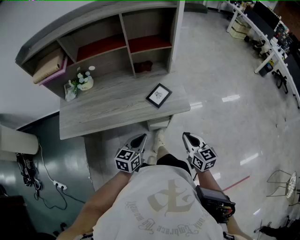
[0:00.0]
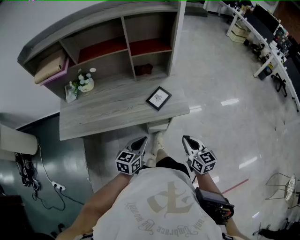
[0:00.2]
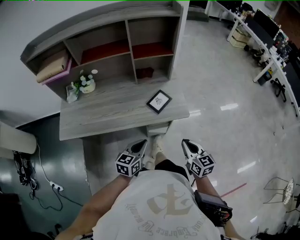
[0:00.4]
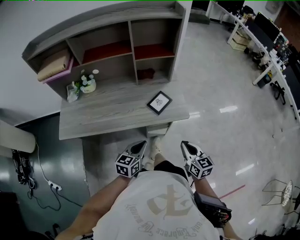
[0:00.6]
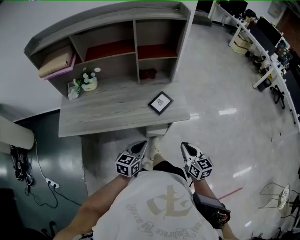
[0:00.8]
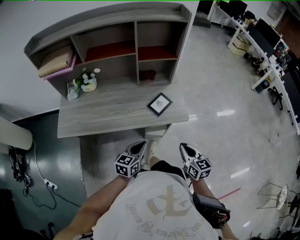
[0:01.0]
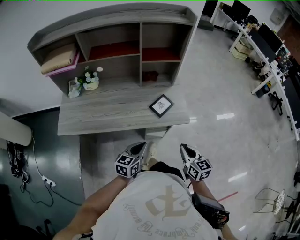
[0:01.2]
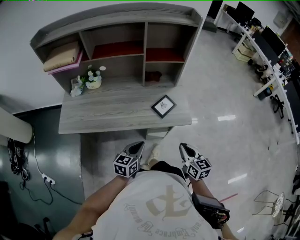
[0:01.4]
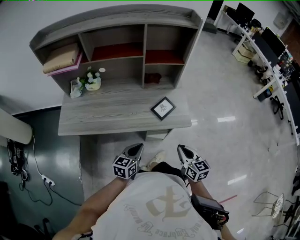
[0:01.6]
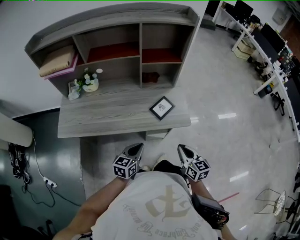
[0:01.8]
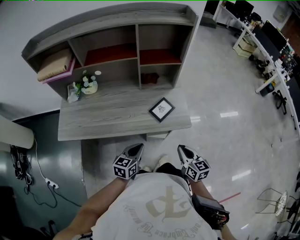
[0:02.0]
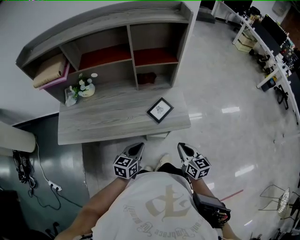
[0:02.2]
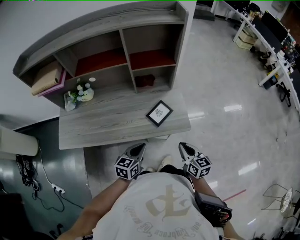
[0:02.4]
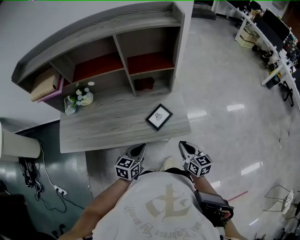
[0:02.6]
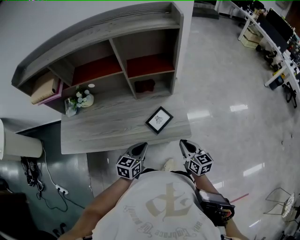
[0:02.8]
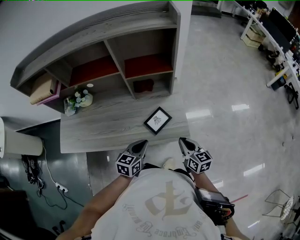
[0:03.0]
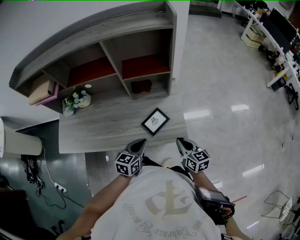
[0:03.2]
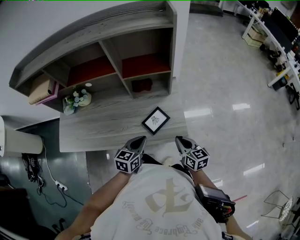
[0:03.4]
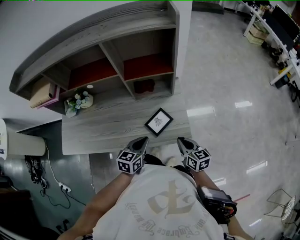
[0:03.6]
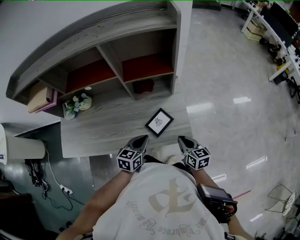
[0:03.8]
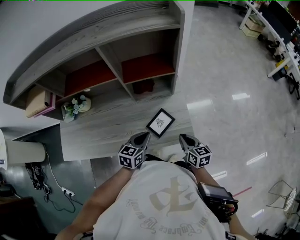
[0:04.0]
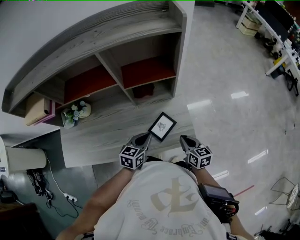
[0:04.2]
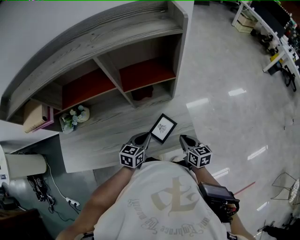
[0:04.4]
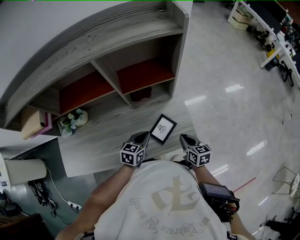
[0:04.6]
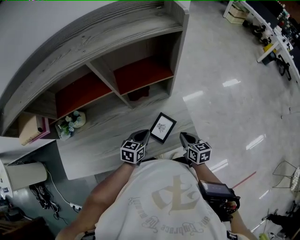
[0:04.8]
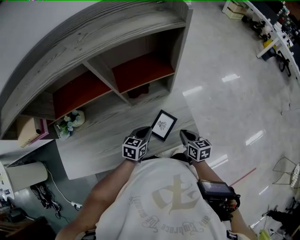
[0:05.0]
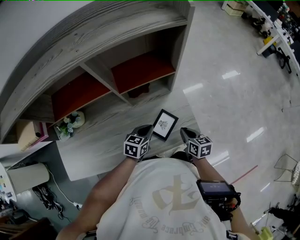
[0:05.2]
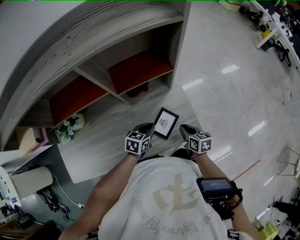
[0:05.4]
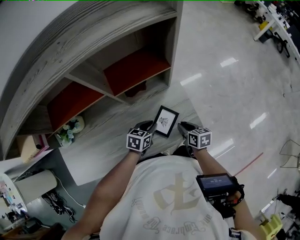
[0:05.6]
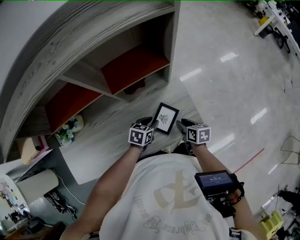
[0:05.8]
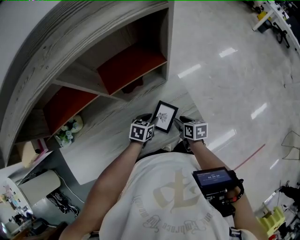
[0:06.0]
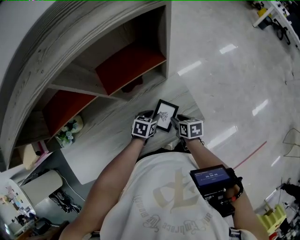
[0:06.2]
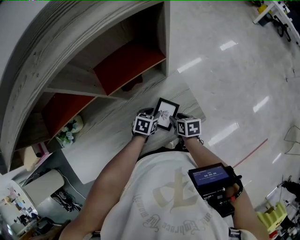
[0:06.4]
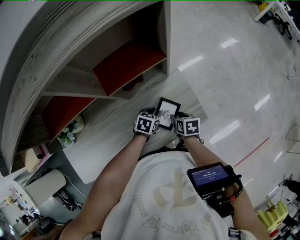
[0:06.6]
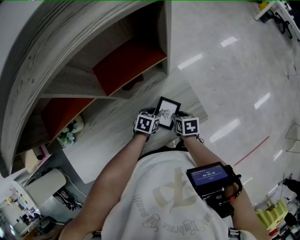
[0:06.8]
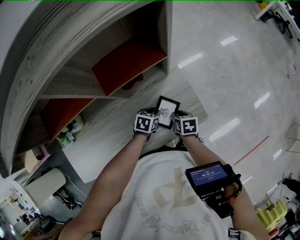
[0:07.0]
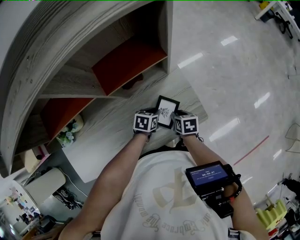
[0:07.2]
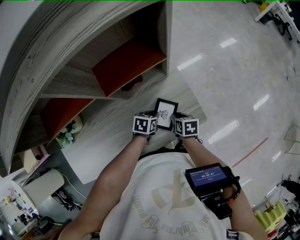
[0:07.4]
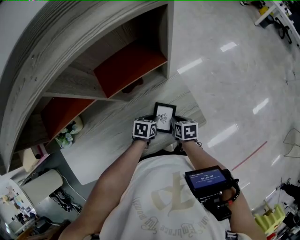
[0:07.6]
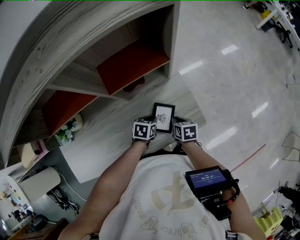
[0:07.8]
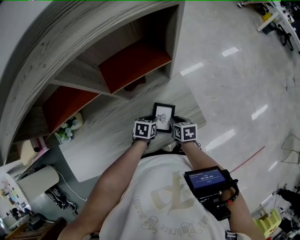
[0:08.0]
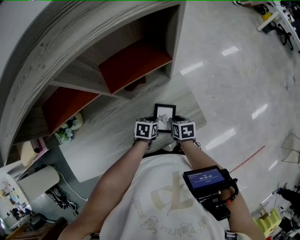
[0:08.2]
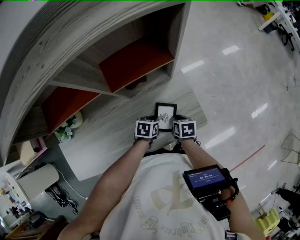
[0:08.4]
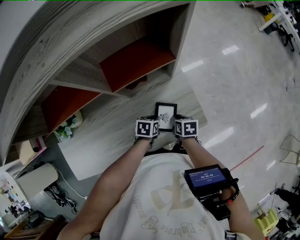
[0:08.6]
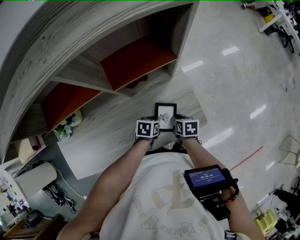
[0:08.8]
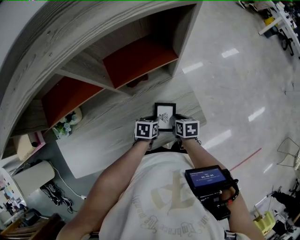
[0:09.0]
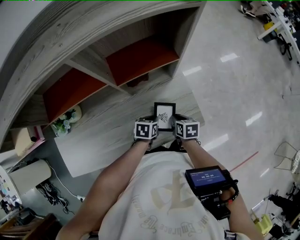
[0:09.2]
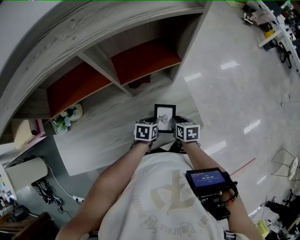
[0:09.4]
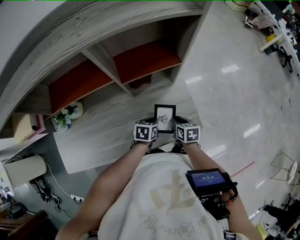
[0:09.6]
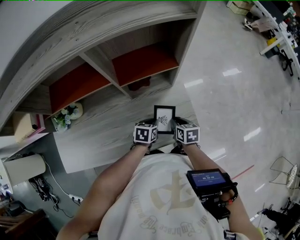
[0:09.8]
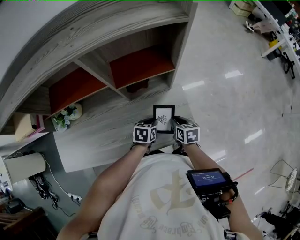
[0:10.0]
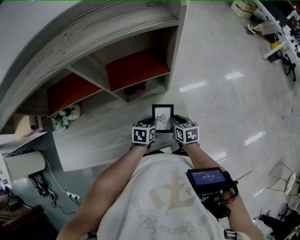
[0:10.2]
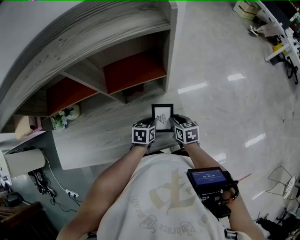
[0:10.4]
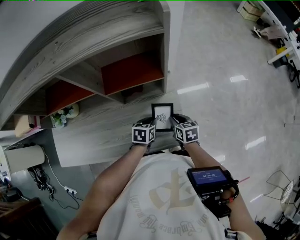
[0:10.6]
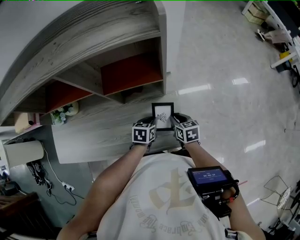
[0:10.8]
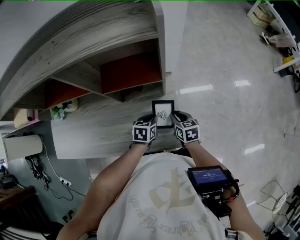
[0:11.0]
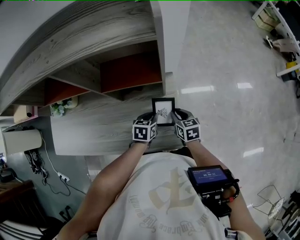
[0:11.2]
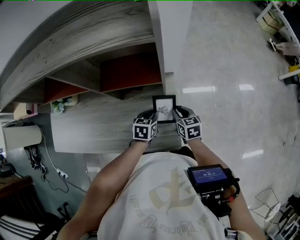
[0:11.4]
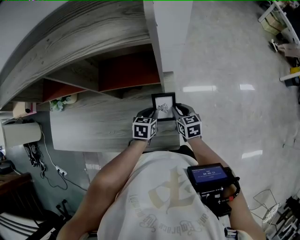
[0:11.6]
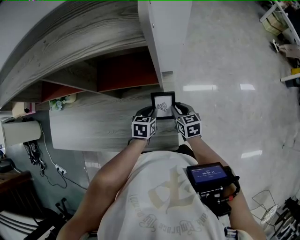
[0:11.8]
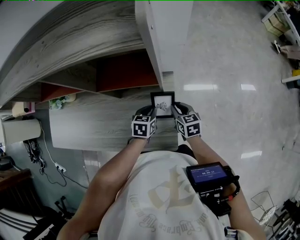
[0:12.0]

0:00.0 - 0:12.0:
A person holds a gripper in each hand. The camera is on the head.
0:00.0 - 0:01.6: The grippers make only small movements.
0:01.6 - 0:03.0: Both grippers travel together forward and to the right, approximately 20 cm.
0:03.0 - 0:04.4: The right gripper goes some 10 cm forward. The left gripper is displaced forward by roughly 10 cm.
0:04.4 - 0:06.0: The right gripper travels downward by roughly 10 cm, turns by about 30 degrees, and opens its fingers. Meanwhile the left gripper moves downward and forward, roughly 15 cm, turns by approximately 30 degrees, and opens up.
0:06.0 - 0:07.6: The right gripper closes up.
0:07.6 - 0:09.0: The grippers stay close to where they were, moving slightly.
0:09.0 - 0:10.4: The right gripper moves upward, forward and to the right, approximately 10 cm, and swivels some 20 degrees. The left gripper is displaced upward and to the right by roughly 10 cm.
0:10.4 - 0:12.0: Both grippers move forward and to the right, about 10 cm.

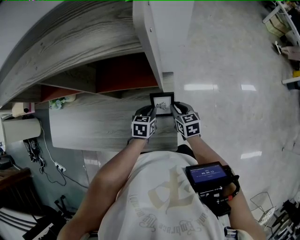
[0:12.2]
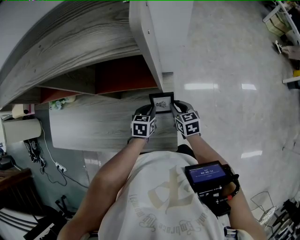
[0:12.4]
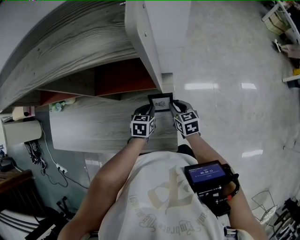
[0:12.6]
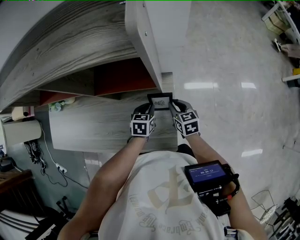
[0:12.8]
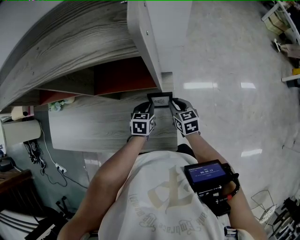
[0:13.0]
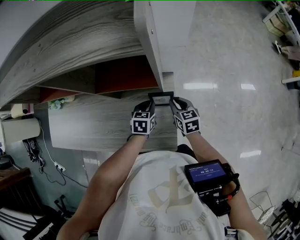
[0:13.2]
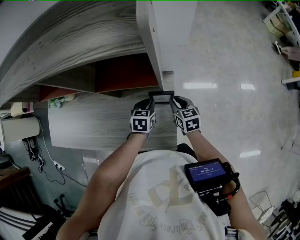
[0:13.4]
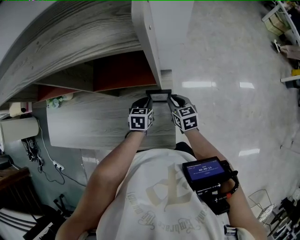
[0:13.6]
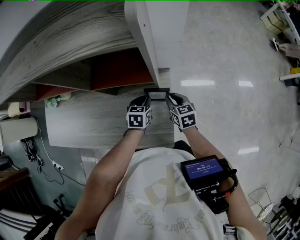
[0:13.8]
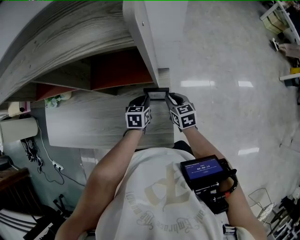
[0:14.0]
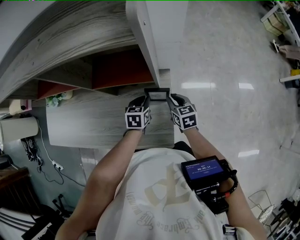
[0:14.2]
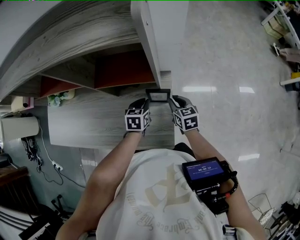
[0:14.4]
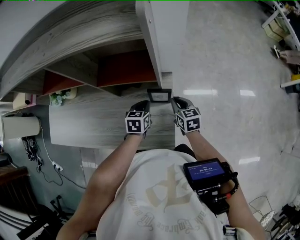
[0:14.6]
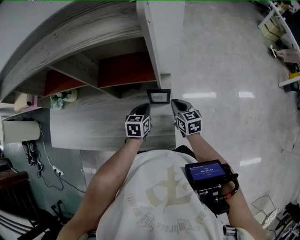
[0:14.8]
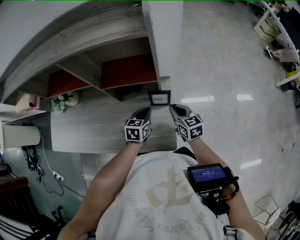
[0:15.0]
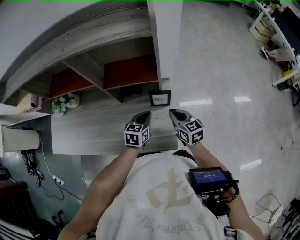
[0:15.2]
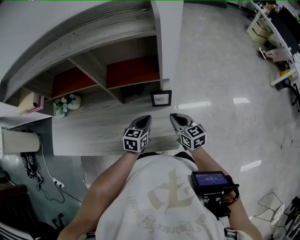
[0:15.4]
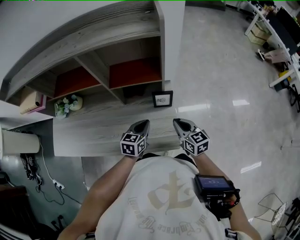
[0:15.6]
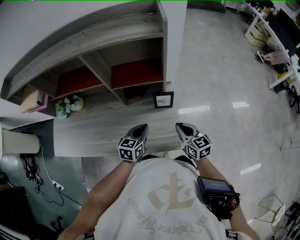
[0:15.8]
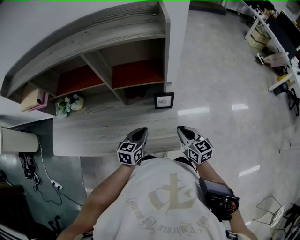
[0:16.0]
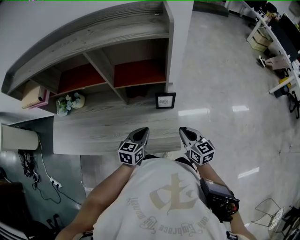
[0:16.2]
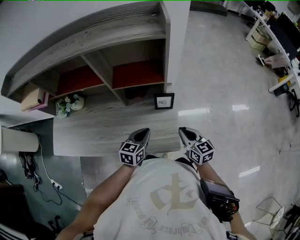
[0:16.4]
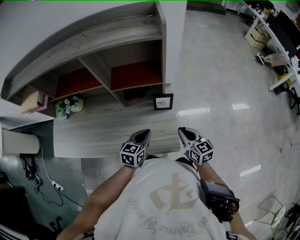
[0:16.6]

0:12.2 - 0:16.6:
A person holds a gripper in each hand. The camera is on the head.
0:12.2 - 0:13.6: The grippers make only small movements.
0:13.6 - 0:15.2: The right gripper travels backward and upward by some 10 cm, while the left gripper shifts about 10 cm upward and backward.
0:15.2 - 0:16.6: Both grippers travel together backward, approximately 10 cm.

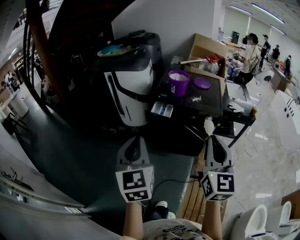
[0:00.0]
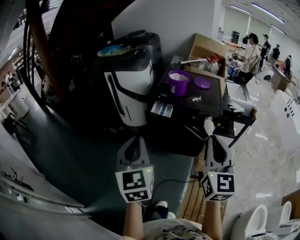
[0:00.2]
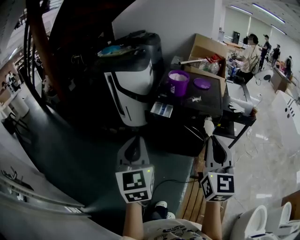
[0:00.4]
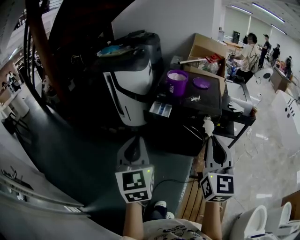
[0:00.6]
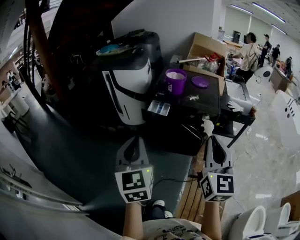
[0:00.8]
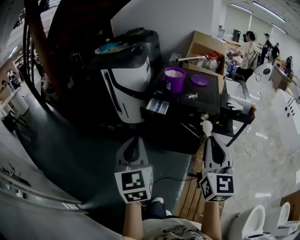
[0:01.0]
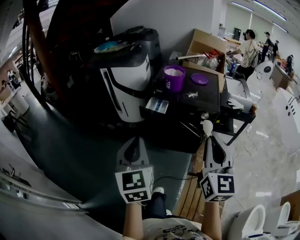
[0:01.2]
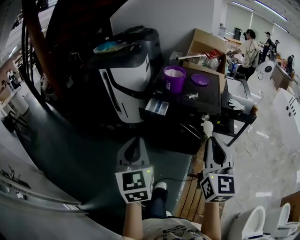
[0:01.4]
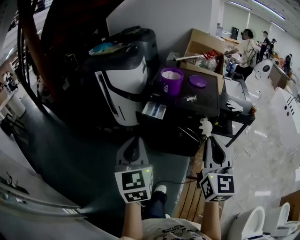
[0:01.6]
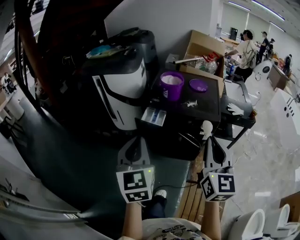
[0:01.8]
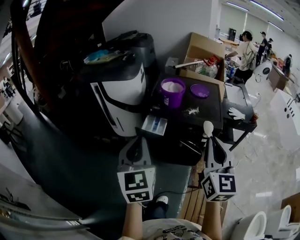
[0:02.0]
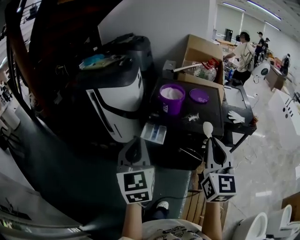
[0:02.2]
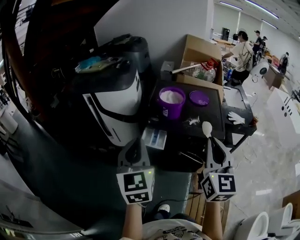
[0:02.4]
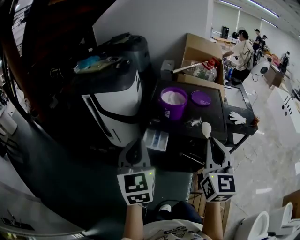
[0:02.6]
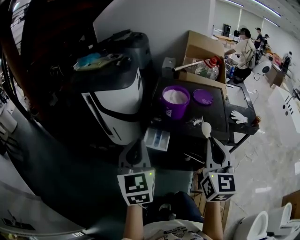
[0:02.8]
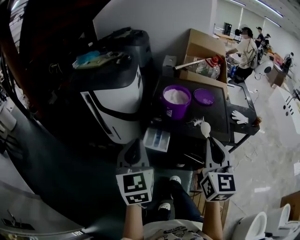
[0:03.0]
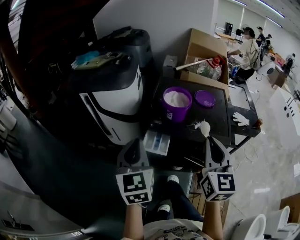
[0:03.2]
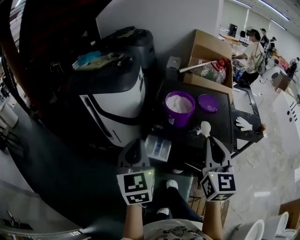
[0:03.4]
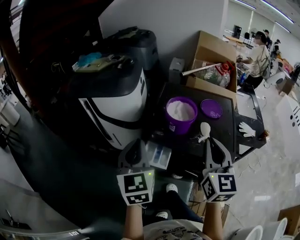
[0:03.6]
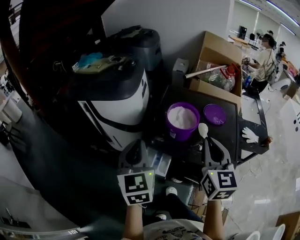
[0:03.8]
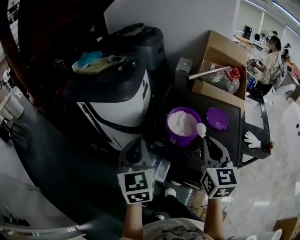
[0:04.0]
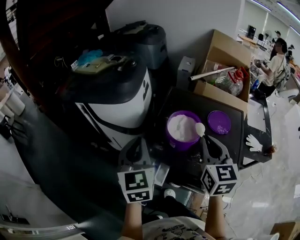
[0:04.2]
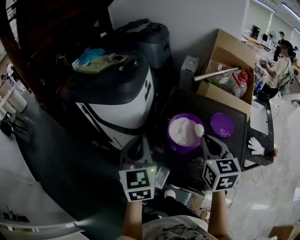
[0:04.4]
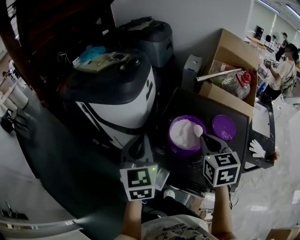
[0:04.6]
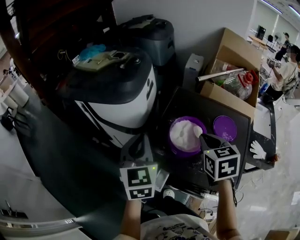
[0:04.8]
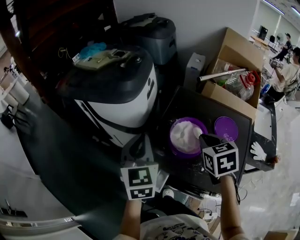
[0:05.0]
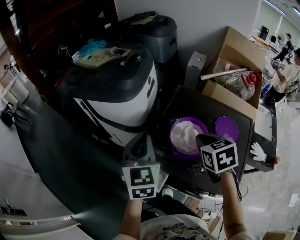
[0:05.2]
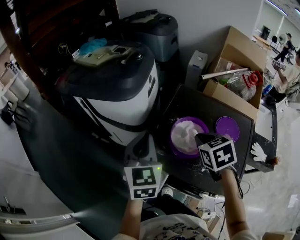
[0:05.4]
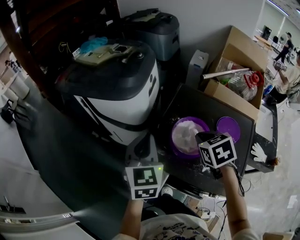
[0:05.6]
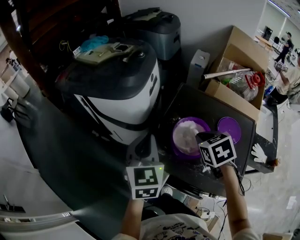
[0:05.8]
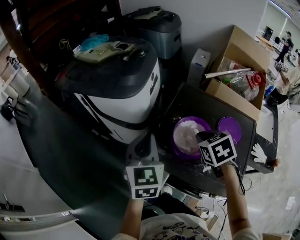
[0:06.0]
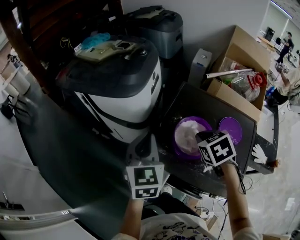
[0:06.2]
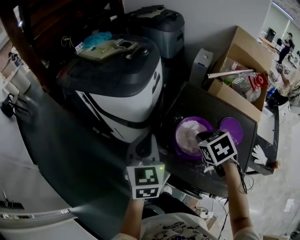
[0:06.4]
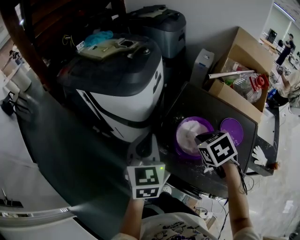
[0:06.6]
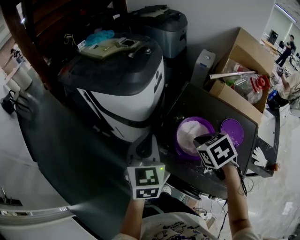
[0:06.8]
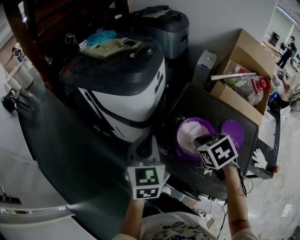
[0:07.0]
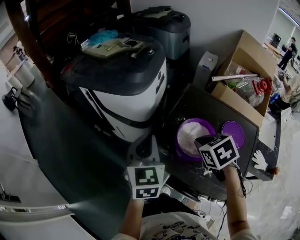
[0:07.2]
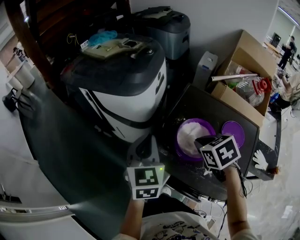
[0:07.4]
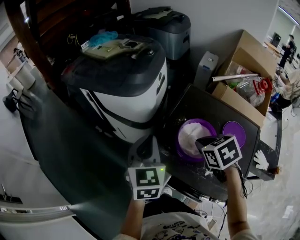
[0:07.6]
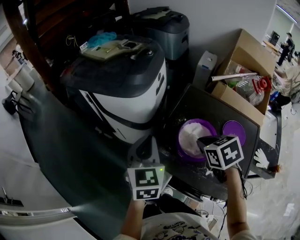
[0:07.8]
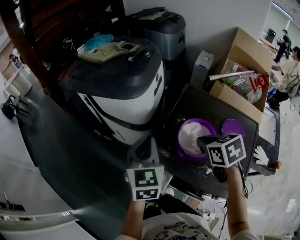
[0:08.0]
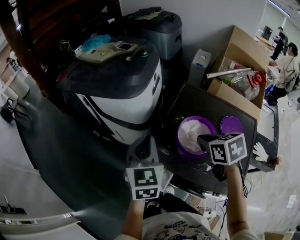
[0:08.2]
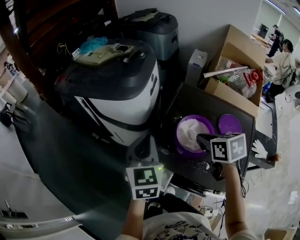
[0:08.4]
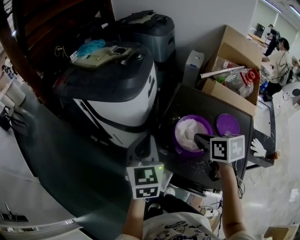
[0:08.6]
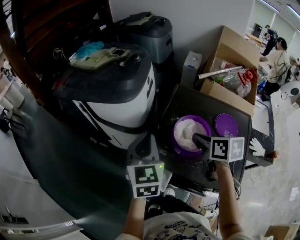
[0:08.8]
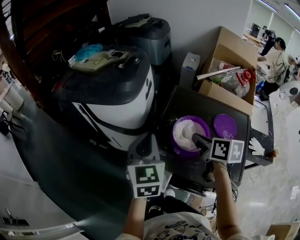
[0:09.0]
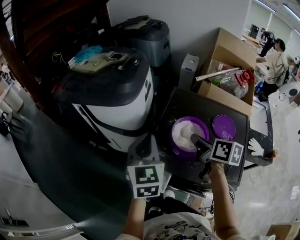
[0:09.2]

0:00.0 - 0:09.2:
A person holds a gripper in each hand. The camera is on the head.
0:00.0 - 0:01.6: The two grippers go some 5 cm to the right and forward.
0:01.6 - 0:03.0: The two grippers go about 25 cm forward.
0:03.0 - 0:04.6: The grippers both shift forward by some 30 cm. The right gripper changes its angle by some 30 degrees.
0:04.6 - 0:06.2: The right gripper goes some 10 cm downward and forward, and rotates about 30 degrees.
0:06.2 - 0:07.6: The grippers move only a little.
0:07.6 - 0:09.2: The right gripper rotates around the line of its fingers by roughly 50 degrees, clockwise from behind.
